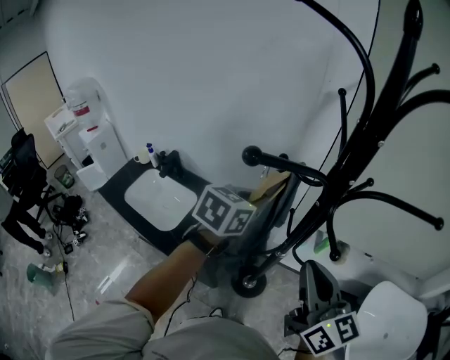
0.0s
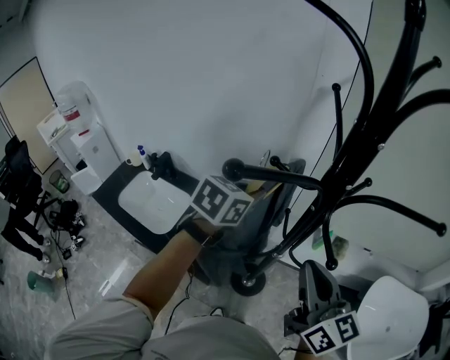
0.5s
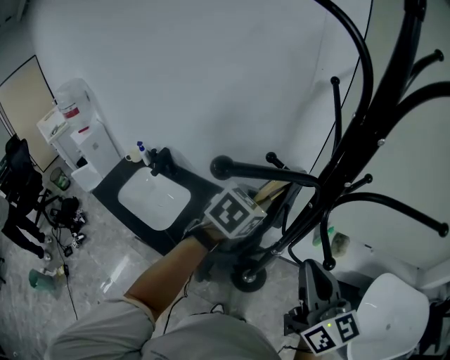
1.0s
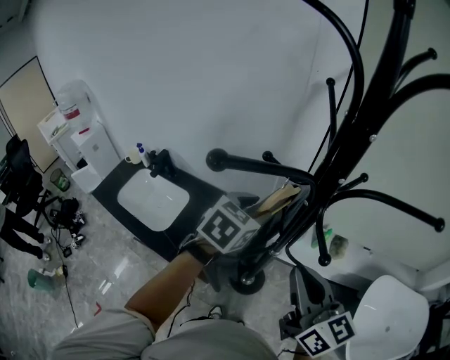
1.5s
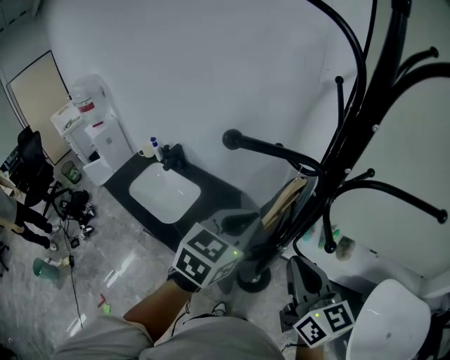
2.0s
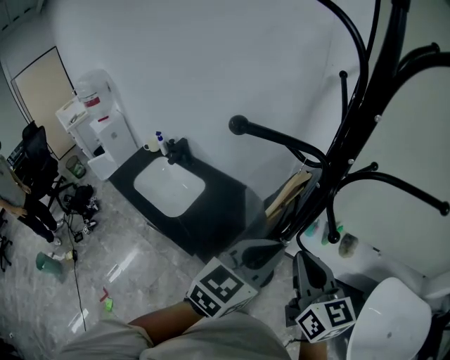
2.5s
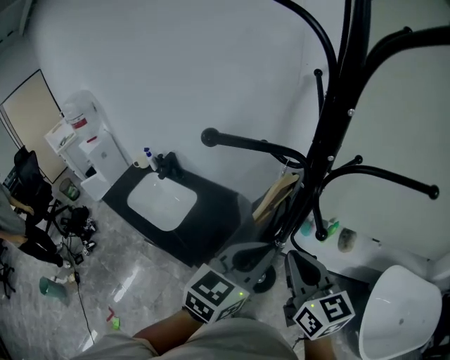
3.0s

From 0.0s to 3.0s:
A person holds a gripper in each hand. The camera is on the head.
From 0.0s to 1.5s: The left gripper shifts by some 5 cm, and opens its fingers.
From 1.5s to 3.0s: The left gripper moves backward, about 15 cm, swivels some 20 degrees, and closes its fingers.

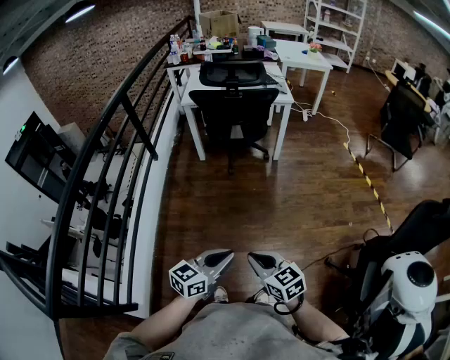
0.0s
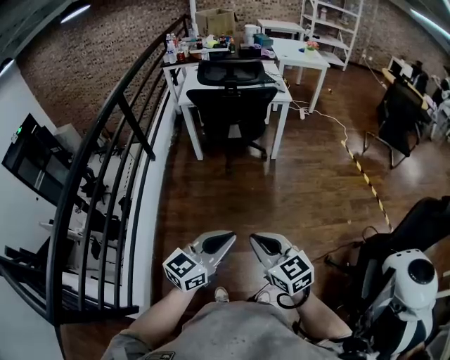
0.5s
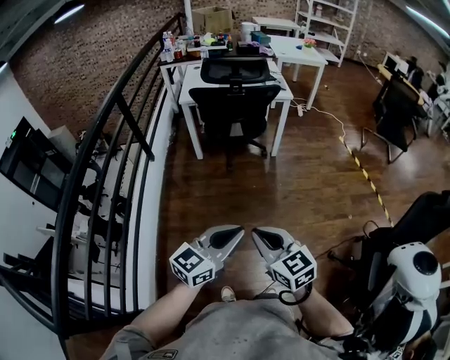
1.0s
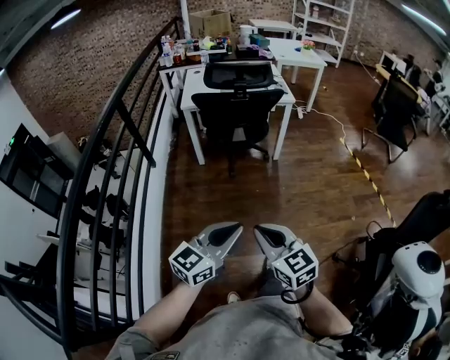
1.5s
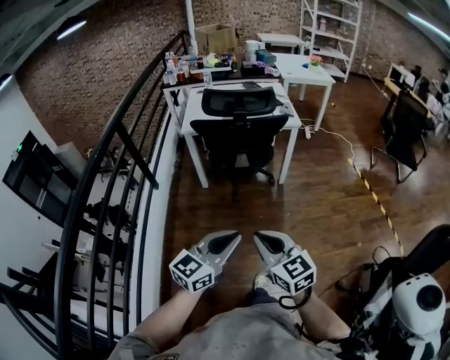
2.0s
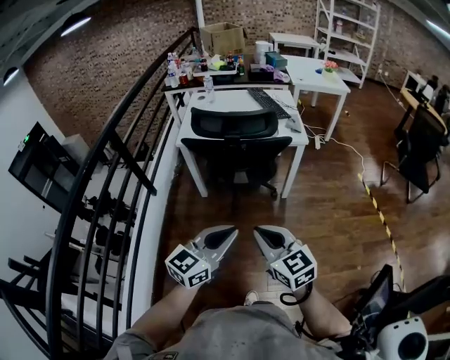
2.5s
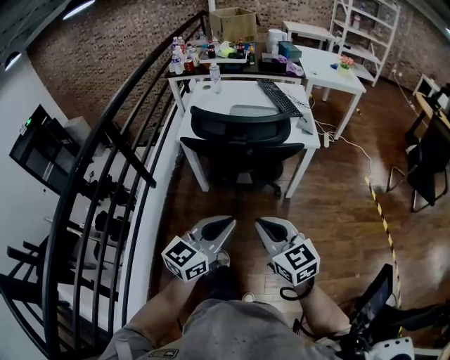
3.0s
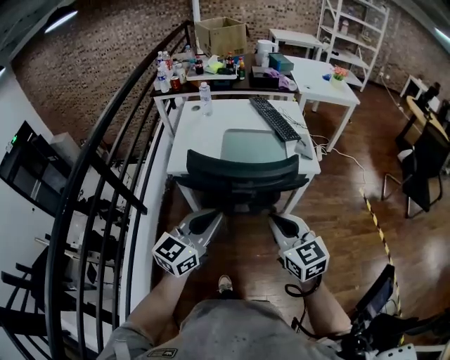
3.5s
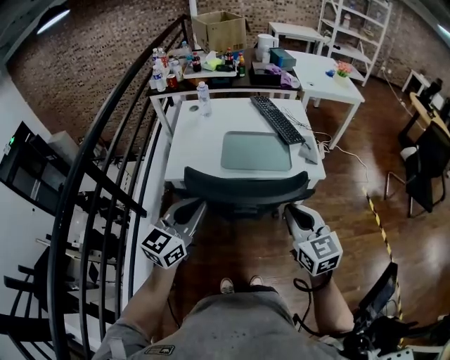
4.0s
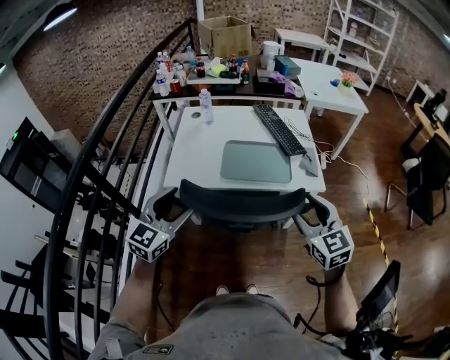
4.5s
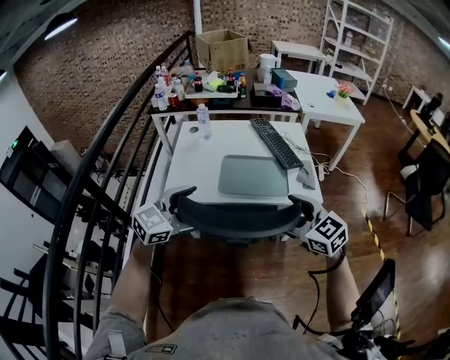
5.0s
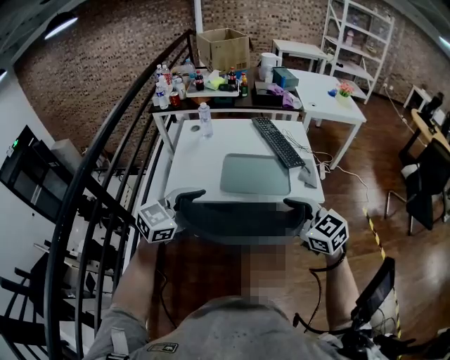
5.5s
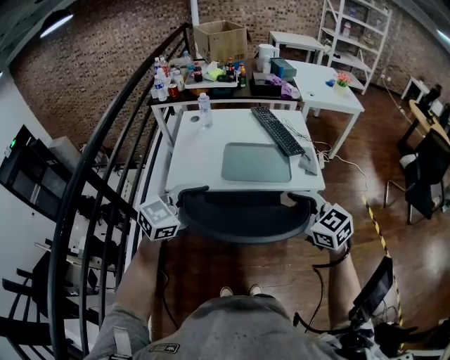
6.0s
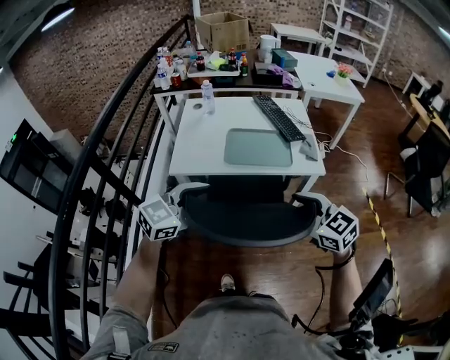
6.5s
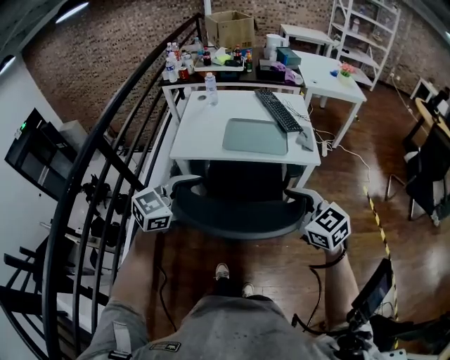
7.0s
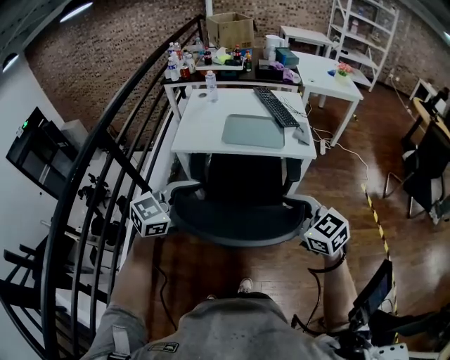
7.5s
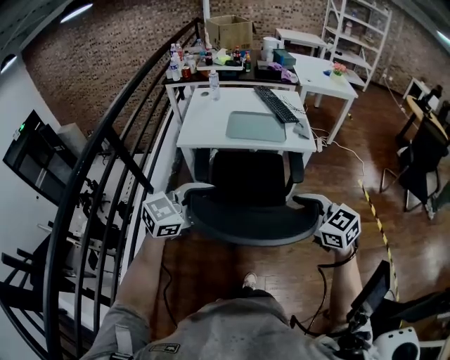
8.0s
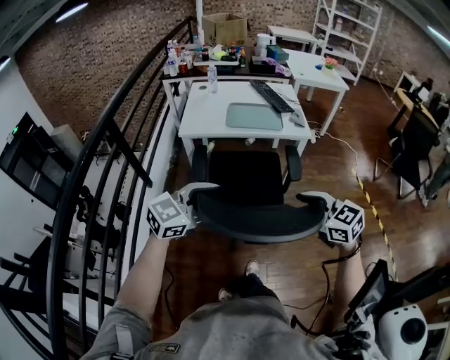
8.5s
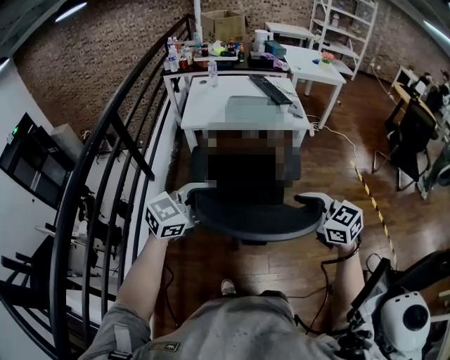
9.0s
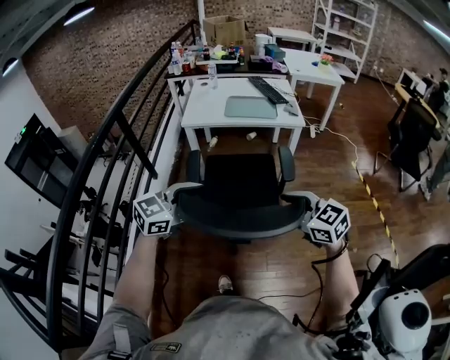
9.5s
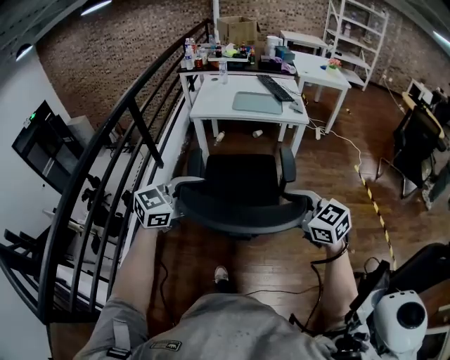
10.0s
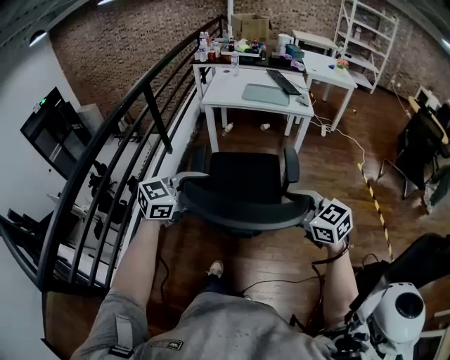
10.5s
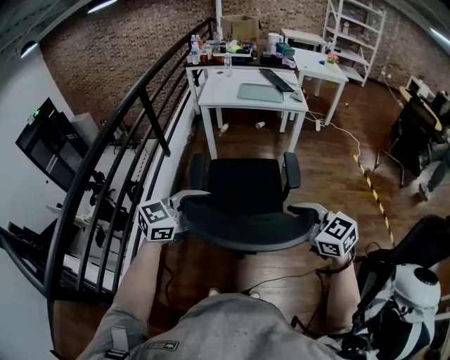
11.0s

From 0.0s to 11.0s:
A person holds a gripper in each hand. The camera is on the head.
From 0.0s to 2.0s: The grippers both shift forward and upward by about 25 cm.
From 2.0s to 3.5s: Both grippers are carried forward, approximately 40 cm.
From 3.5s to 5.5s: The grippers both shift forward by roughly 15 cm. The right gripper opens up. The left gripper swivels some 20 degrees, and opens up.
From 5.5s to 7.5s: The grippers both shift backward by about 25 cm.
From 7.5s to 9.0s: Both grippers travel together backward, roughly 20 cm.
From 9.0s to 11.0s: Both grippers travel together backward, approximately 30 cm.

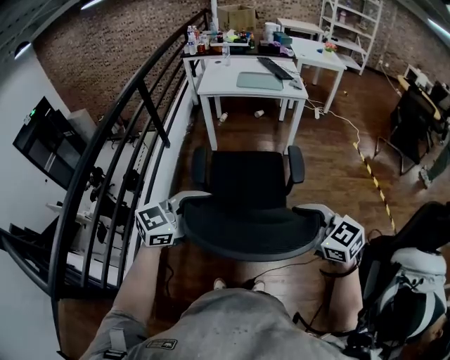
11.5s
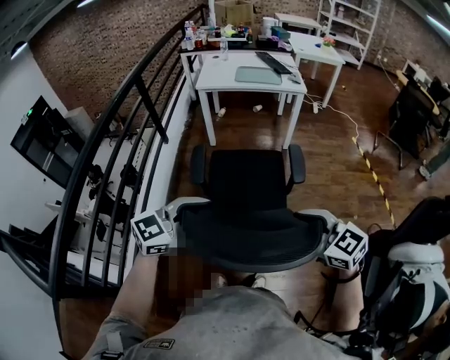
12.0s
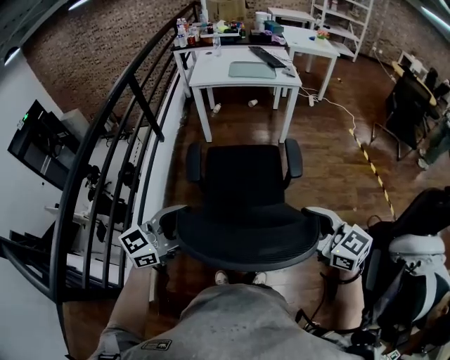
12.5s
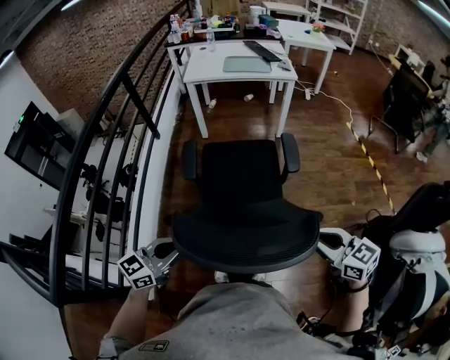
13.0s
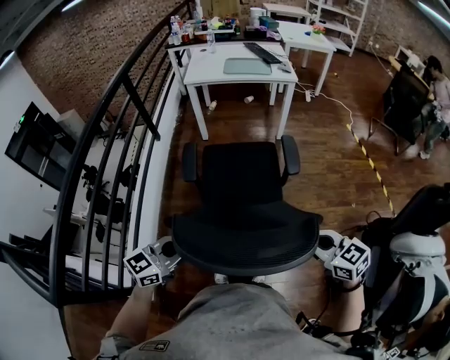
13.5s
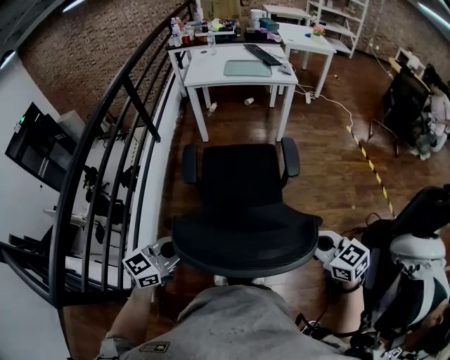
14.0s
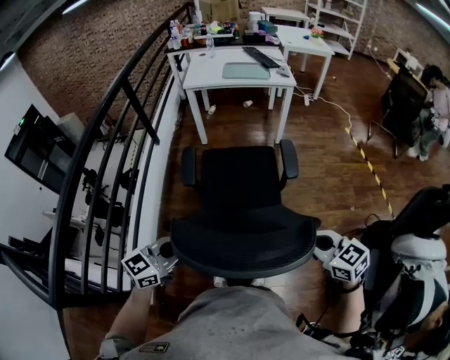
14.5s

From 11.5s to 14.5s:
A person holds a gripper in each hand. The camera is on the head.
From 11.5s to 13.0s: The right gripper goes roughly 10 cm to the right, backward and downward. The left gripper moves backward, downward and to the left, some 15 cm, and closes.
From 13.0s to 14.5s: The grippers stay close to where they were, moving slightly.

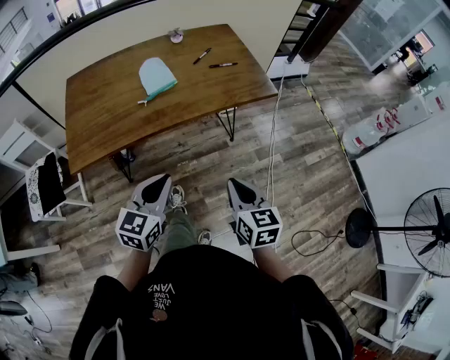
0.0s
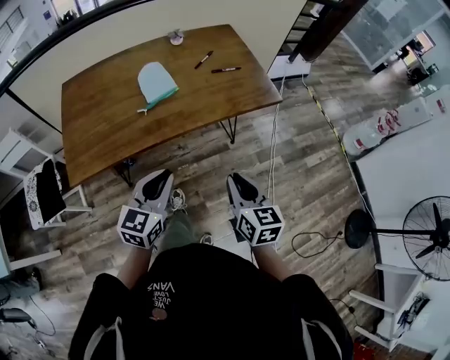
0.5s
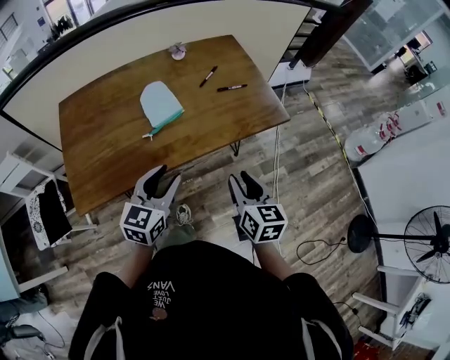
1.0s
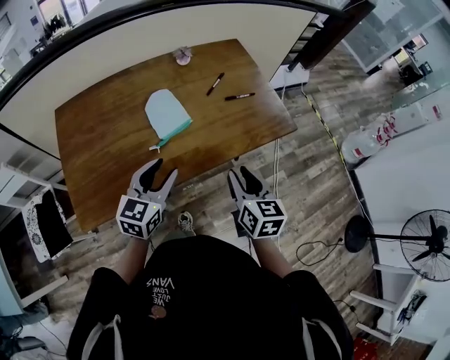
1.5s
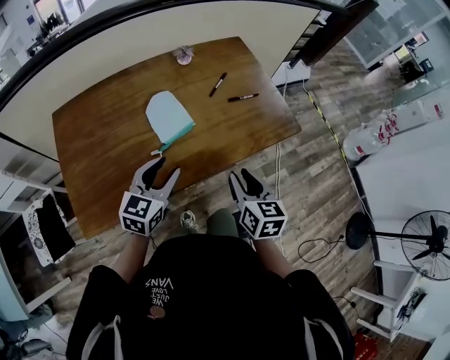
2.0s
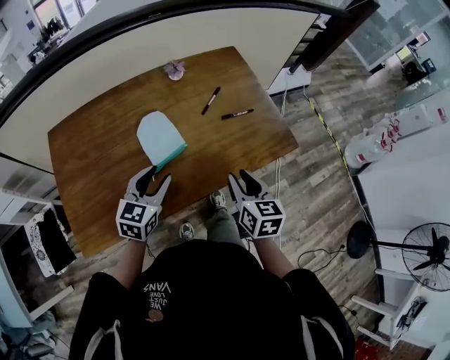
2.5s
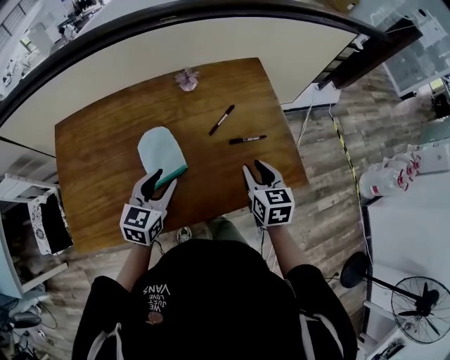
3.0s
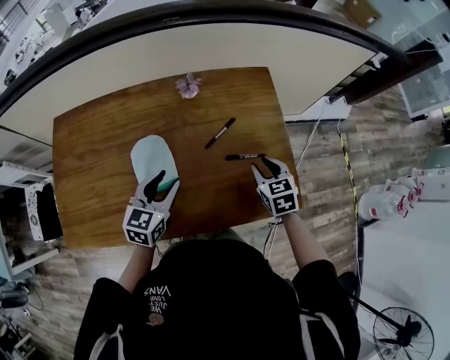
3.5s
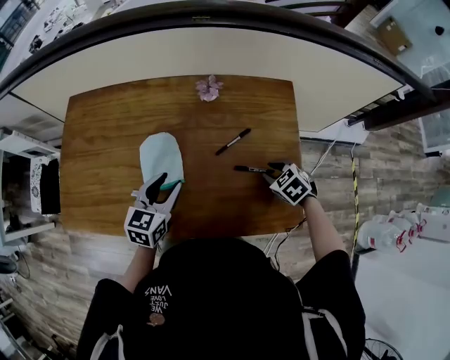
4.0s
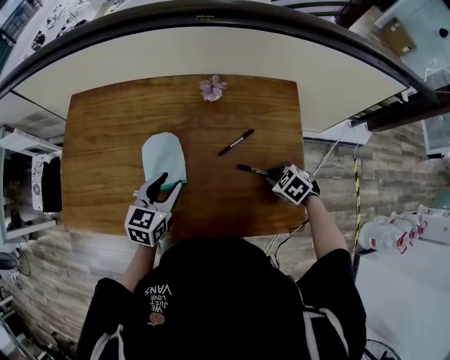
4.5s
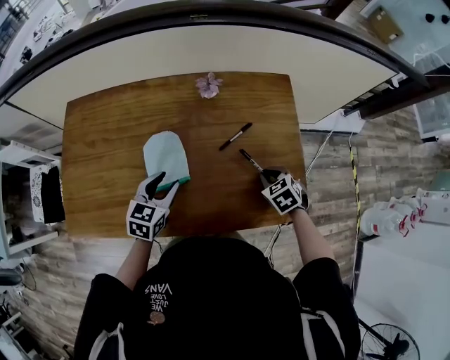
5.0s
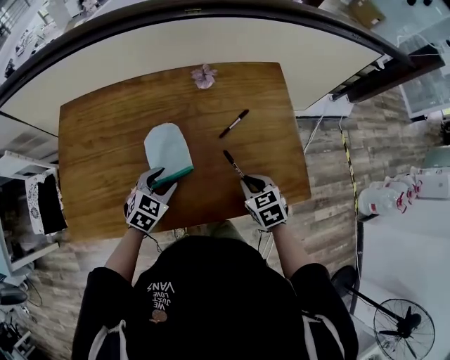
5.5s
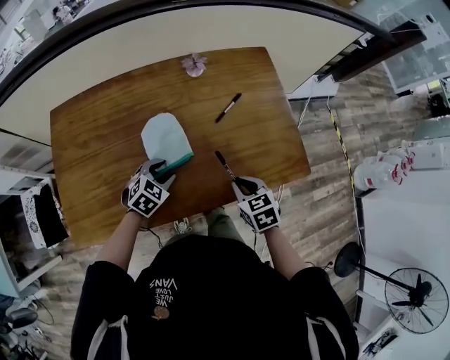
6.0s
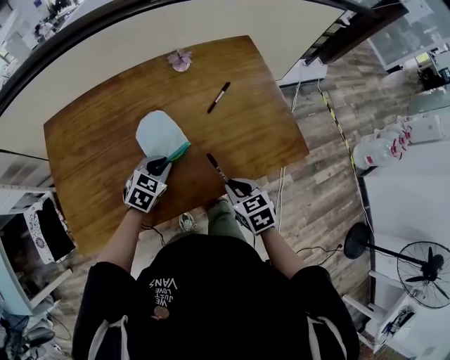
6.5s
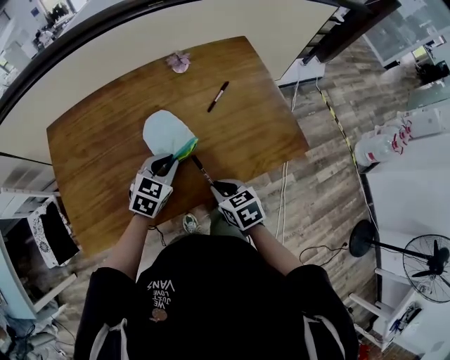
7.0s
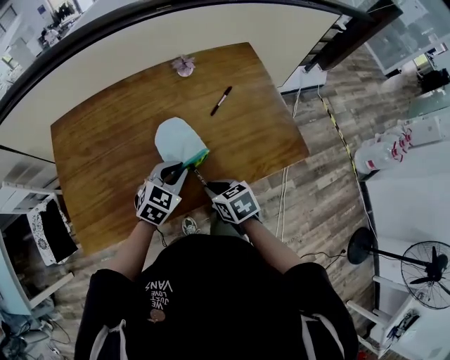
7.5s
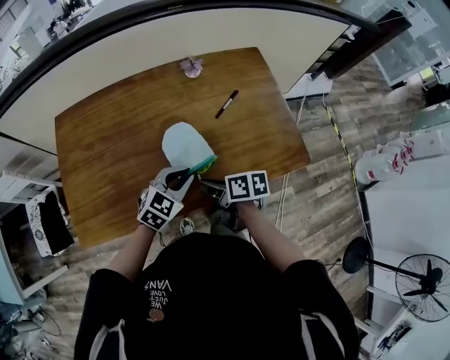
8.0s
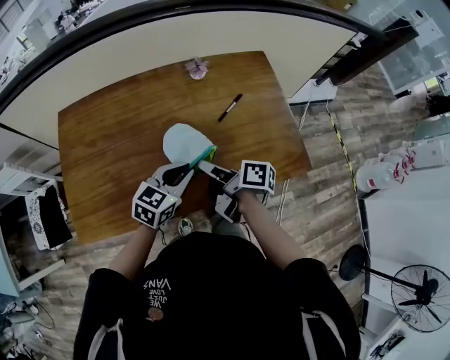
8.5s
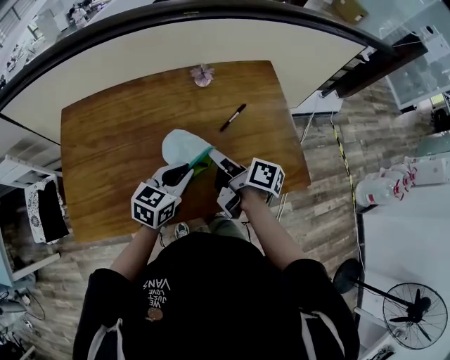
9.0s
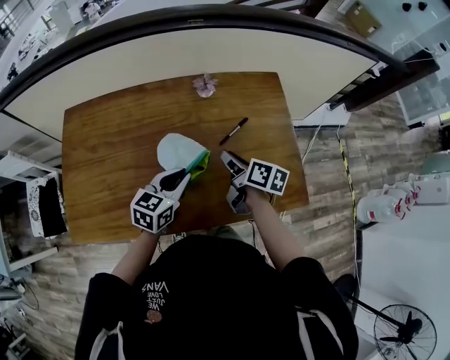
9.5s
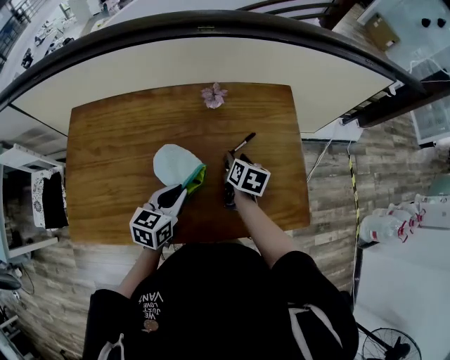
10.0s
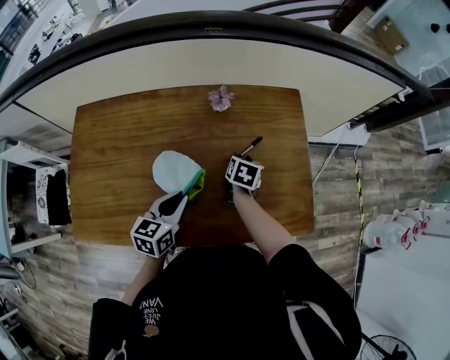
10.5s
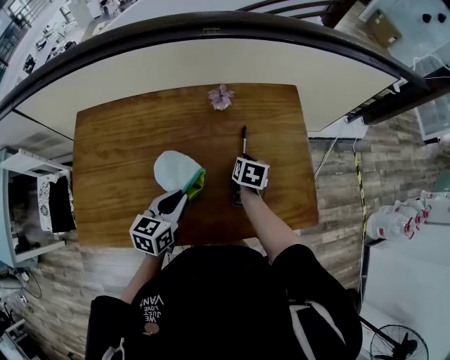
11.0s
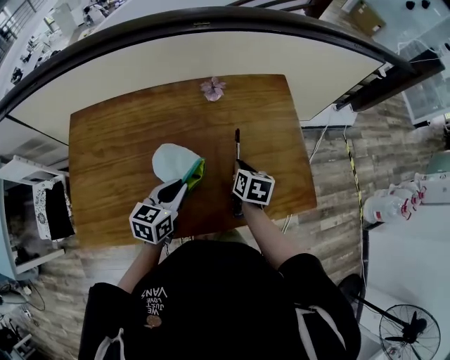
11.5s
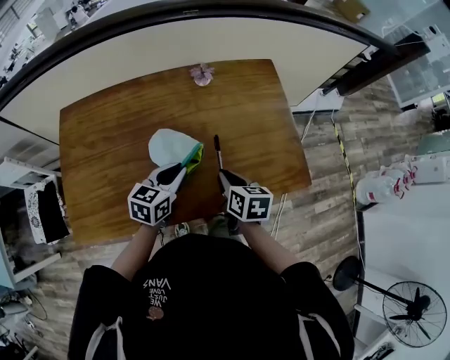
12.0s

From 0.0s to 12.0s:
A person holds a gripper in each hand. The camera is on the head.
From 0.0s to 2.0s: The two grippers go approximately 25 cm forward and to the left. The left gripper opens; the right gripper opens.
From 2.0s to 4.0s: The left gripper moves about 20 cm, and swivels roughly 30 degrees, while the right gripper moves about 40 cm, and tips its fingers downward by about 40 degrees.
From 4.0s to 6.0s: The right gripper moves approximately 20 cm, and changes its angle by roughly 40 degrees, while the left gripper heads downward, covering about 10 cm, and turns by some 50 degrees.
From 6.0s to 8.0s: The left gripper moves upward and to the right, about 10 cm, and closes up. The right gripper shifts about 10 cm to the left, and rolls clockwise, seen from behind, by approximately 40 degrees.
From 8.0s to 10.0s: The right gripper travels forward and to the right by some 25 cm, rotates approximately 40 degrees, and opens up. Meanwhile the left gripper heads forward, covering some 10 cm, and rotates about 40 degrees.
From 10.0s to 12.0s: The right gripper heads backward, covering some 15 cm, and closes up.
